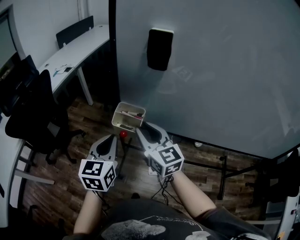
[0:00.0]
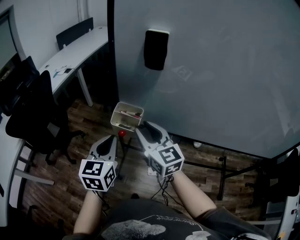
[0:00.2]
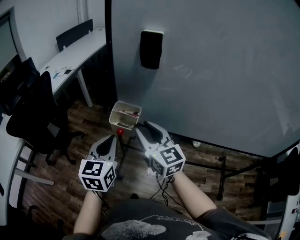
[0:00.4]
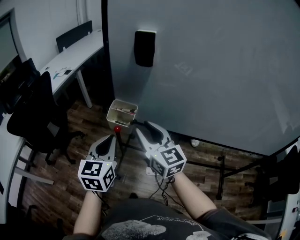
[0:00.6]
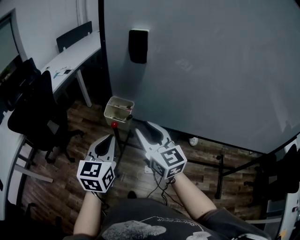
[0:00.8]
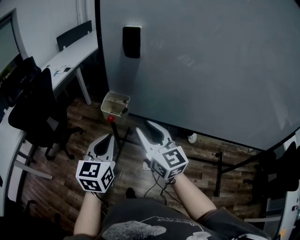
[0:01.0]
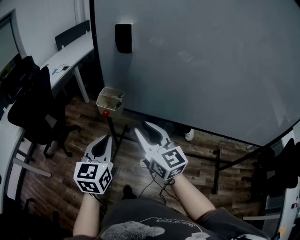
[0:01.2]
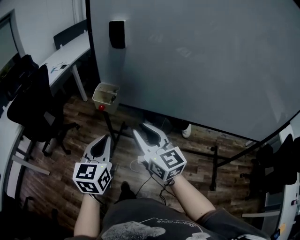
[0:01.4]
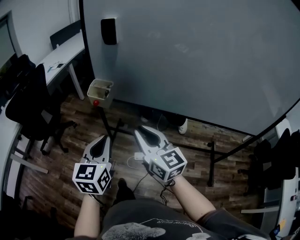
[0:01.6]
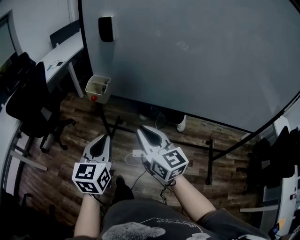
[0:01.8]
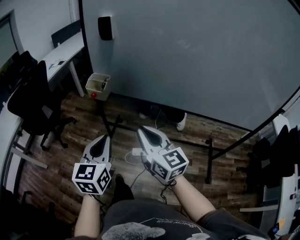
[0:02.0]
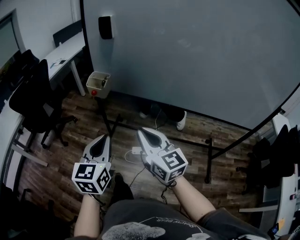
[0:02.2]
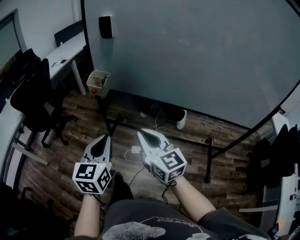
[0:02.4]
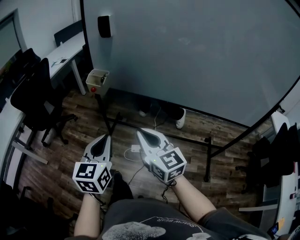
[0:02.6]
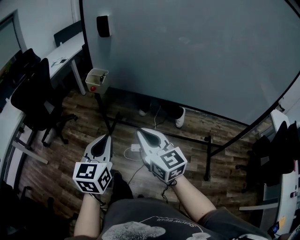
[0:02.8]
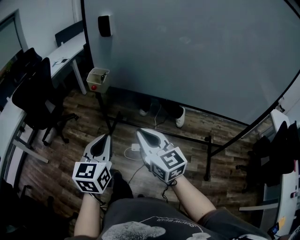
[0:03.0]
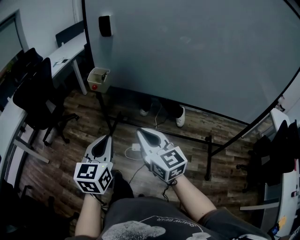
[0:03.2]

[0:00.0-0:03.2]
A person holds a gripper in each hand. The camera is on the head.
0.0 to 1.6 s: Both grippers move backward and to the right, approximately 25 cm.
1.6 to 3.2 s: The two grippers go approximately 15 cm backward.

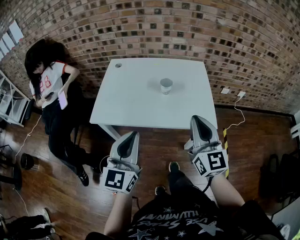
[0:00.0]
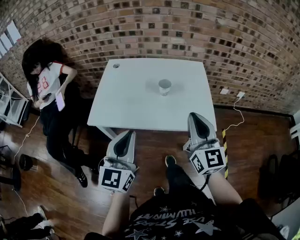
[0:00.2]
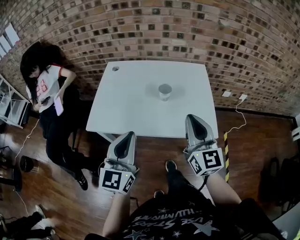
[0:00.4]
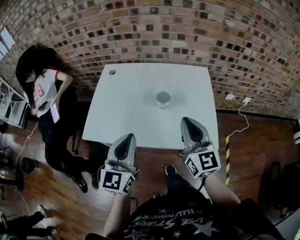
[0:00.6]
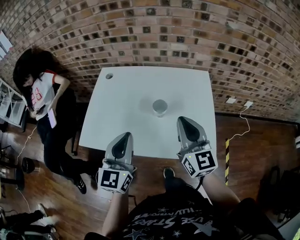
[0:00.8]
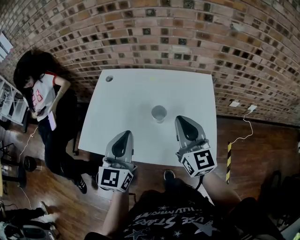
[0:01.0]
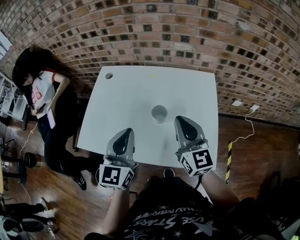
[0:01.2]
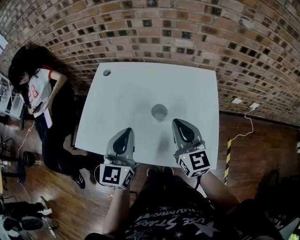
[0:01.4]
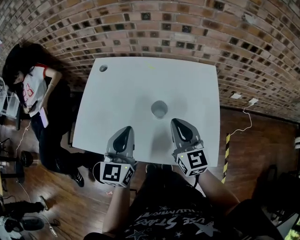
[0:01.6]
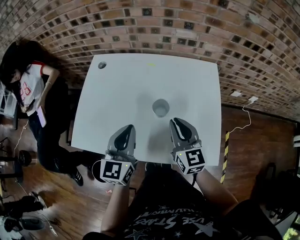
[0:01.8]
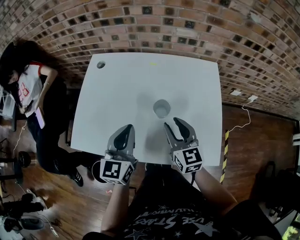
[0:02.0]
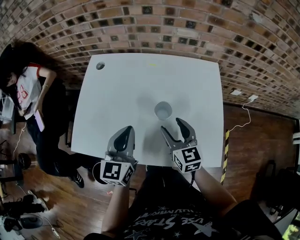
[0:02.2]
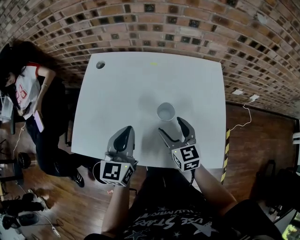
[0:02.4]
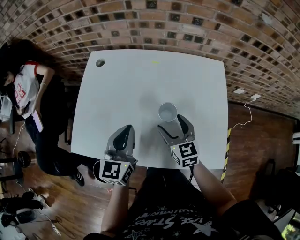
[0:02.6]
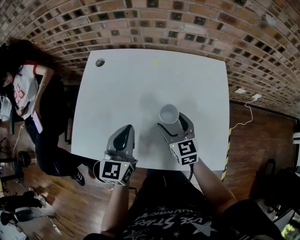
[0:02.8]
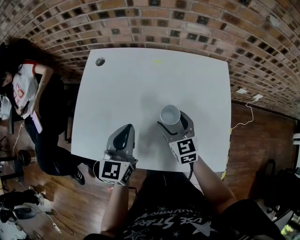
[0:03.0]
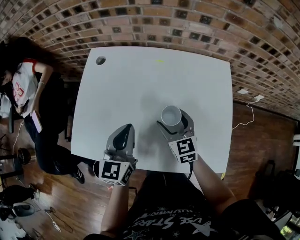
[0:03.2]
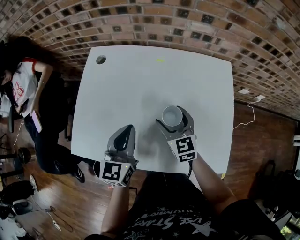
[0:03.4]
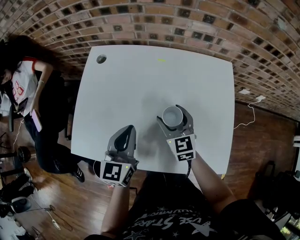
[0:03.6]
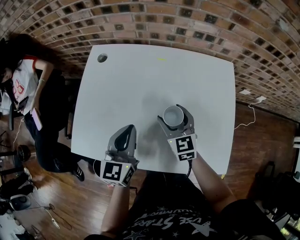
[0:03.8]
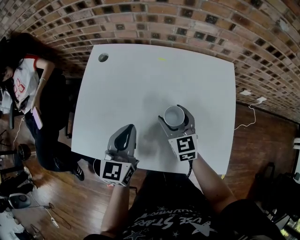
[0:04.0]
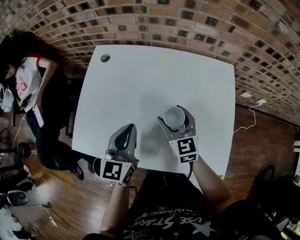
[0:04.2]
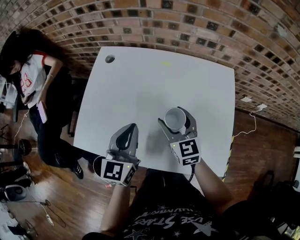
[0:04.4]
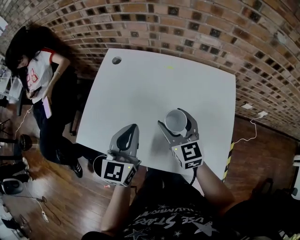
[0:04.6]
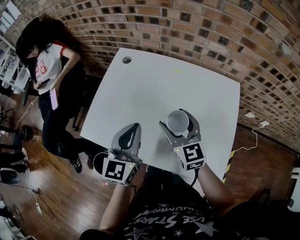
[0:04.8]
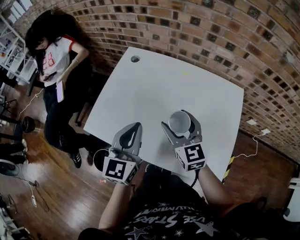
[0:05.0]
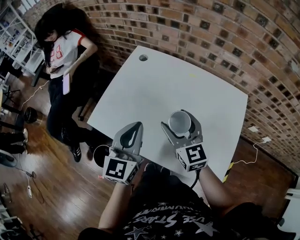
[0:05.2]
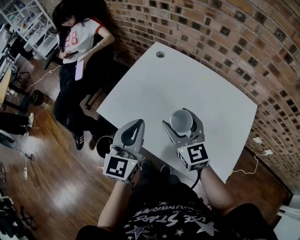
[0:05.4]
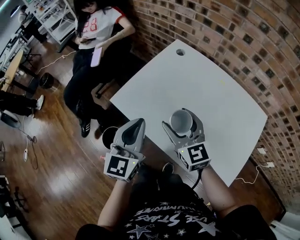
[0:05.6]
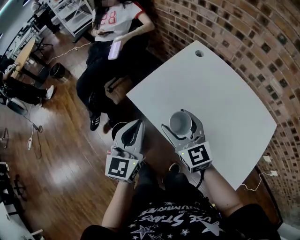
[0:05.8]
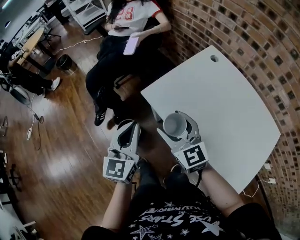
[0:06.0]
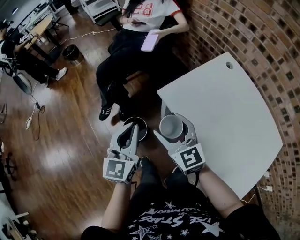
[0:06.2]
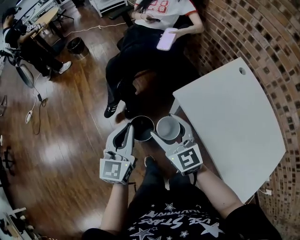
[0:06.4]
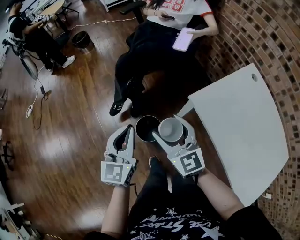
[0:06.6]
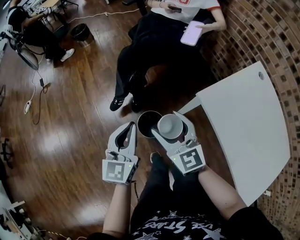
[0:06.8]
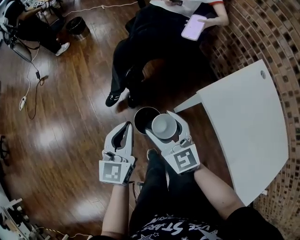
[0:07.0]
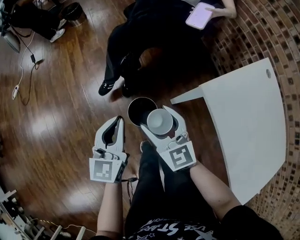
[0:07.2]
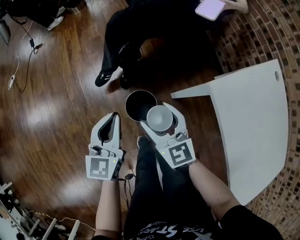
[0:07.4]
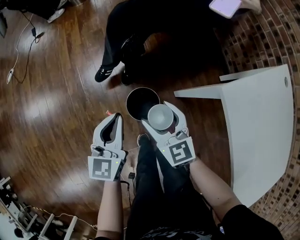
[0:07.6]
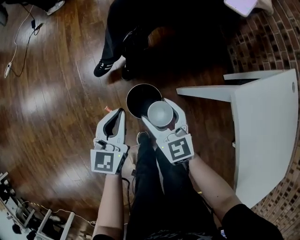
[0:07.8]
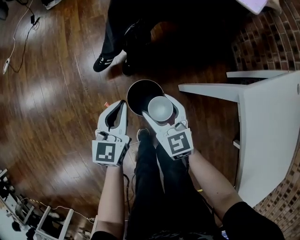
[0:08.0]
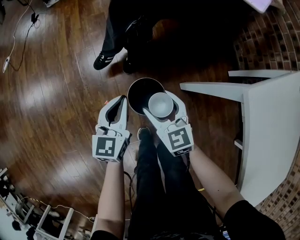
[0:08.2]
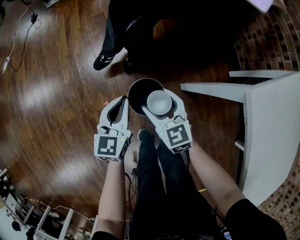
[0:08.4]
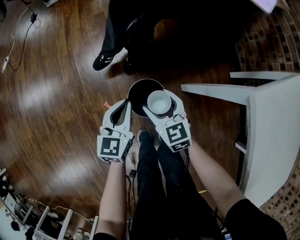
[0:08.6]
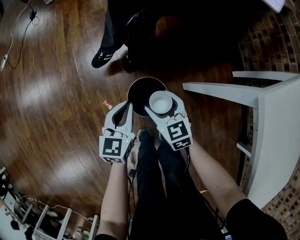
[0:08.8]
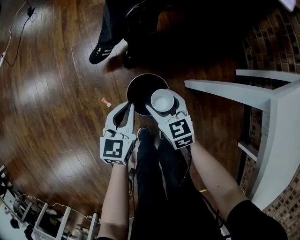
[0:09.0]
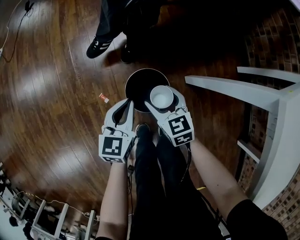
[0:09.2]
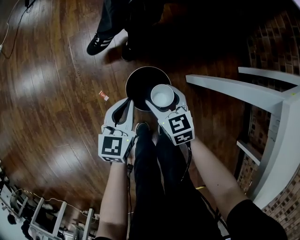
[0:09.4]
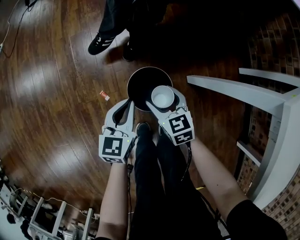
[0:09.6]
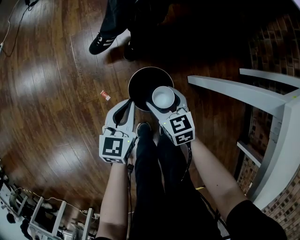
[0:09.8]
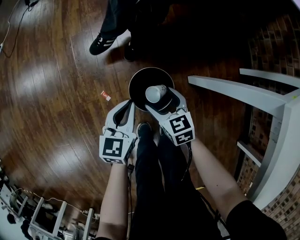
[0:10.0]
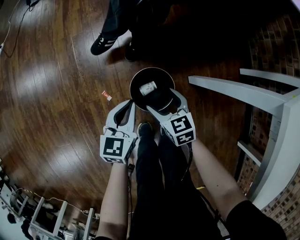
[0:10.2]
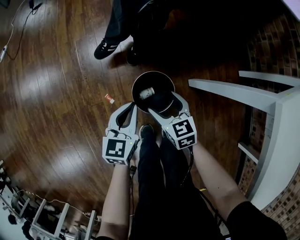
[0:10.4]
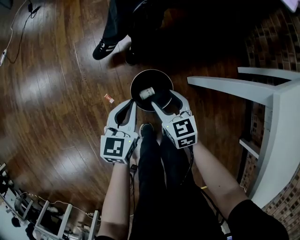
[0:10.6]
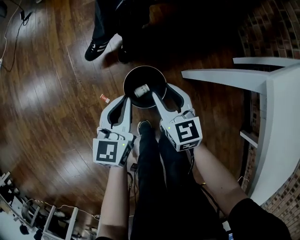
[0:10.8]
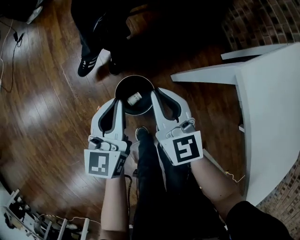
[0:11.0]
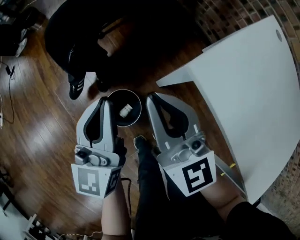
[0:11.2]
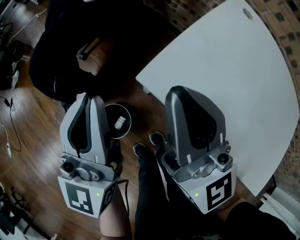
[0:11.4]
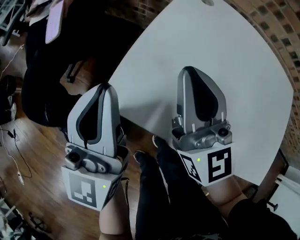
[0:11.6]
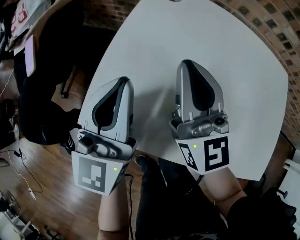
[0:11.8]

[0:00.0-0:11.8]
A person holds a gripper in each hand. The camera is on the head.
0.0 to 1.4 s: The right gripper is displaced forward and downward by approximately 25 cm, while the left gripper is displaced forward by some 25 cm.
1.4 to 3.0 s: The right gripper moves downward and forward, roughly 15 cm, and opens its fingers, while the left gripper heads downward and forward, covering roughly 10 cm.
3.0 to 4.4 s: The right gripper shifts approximately 5 cm upward.
4.4 to 6.0 s: The left gripper shifts by some 30 cm, and rotates approximately 40 degrees. The right gripper shifts by approximately 35 cm, and rotates some 50 degrees.
6.0 to 7.4 s: The left gripper goes approximately 30 cm to the left and downward, and changes its angle by approximately 20 degrees. The right gripper moves to the left, downward and forward, roughly 30 cm.
7.4 to 8.8 s: Both grippers move downward, approximately 25 cm.
8.8 to 10.4 s: The right gripper heads downward, covering about 5 cm.
10.4 to 11.8 s: Both grippers are carried roughly 50 cm. The right gripper points its fingers approximately 50 degrees further upward, and closes its fingers; the left gripper tips its fingers upward by roughly 30 degrees.

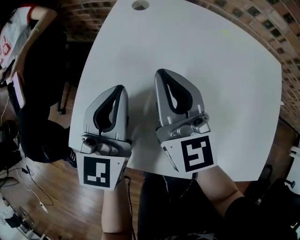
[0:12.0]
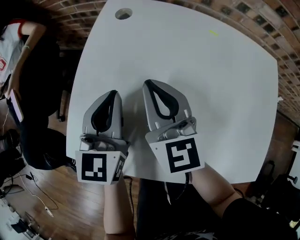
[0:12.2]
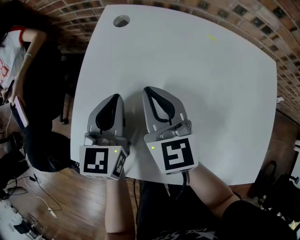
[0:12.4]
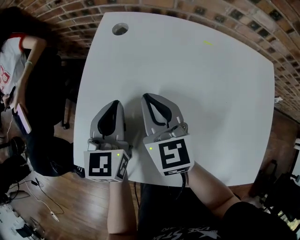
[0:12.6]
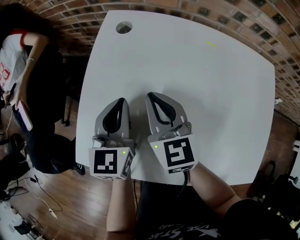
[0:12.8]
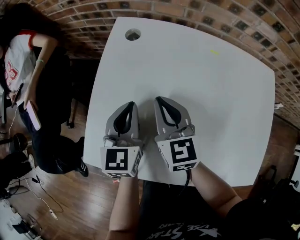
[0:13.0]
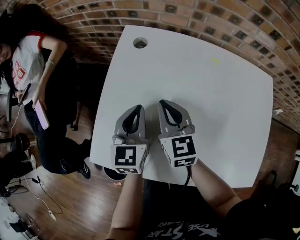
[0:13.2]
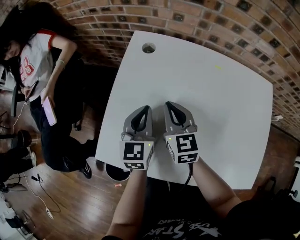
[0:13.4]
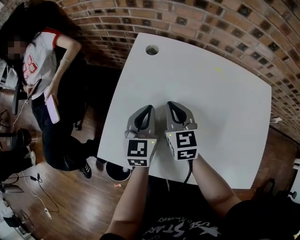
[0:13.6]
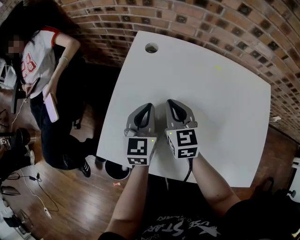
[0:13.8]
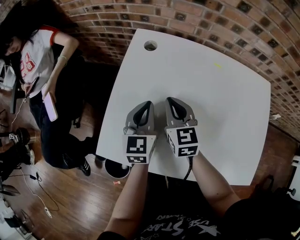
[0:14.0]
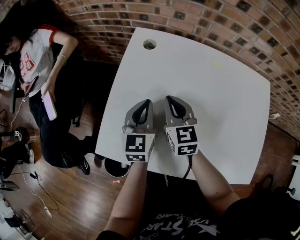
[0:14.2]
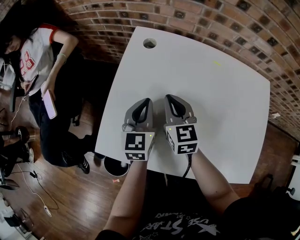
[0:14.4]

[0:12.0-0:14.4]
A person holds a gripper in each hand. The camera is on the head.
12.0 to 13.2 s: The two grippers go roughly 5 cm downward.
13.2 to 14.4 s: The two grippers keep their place.

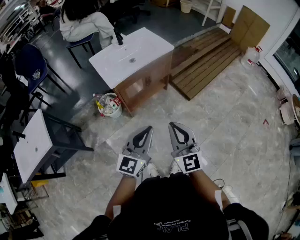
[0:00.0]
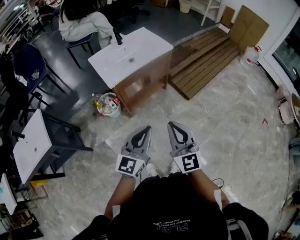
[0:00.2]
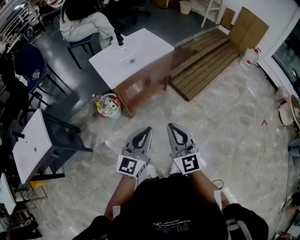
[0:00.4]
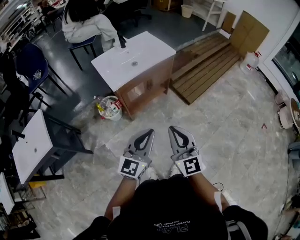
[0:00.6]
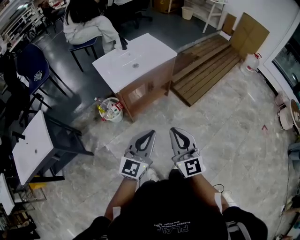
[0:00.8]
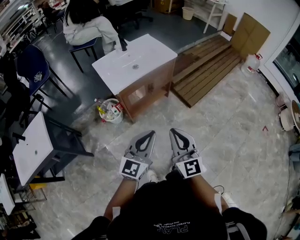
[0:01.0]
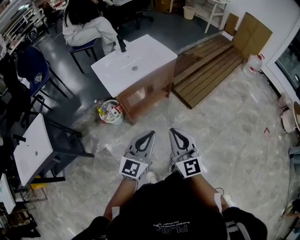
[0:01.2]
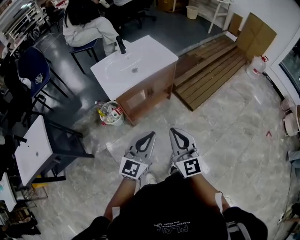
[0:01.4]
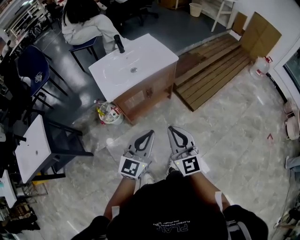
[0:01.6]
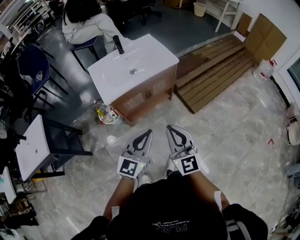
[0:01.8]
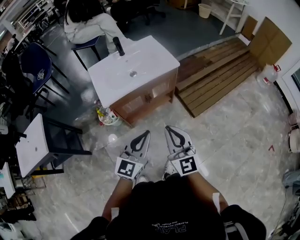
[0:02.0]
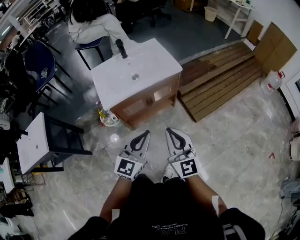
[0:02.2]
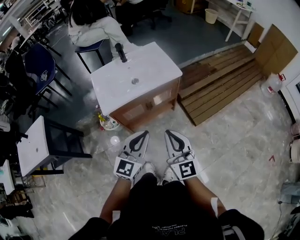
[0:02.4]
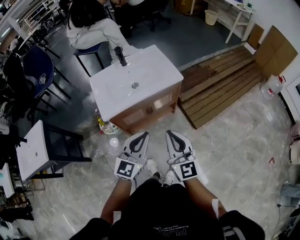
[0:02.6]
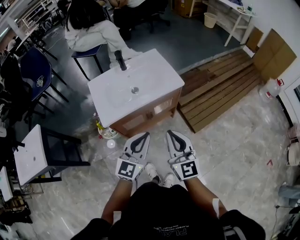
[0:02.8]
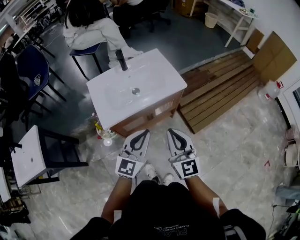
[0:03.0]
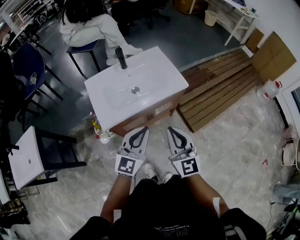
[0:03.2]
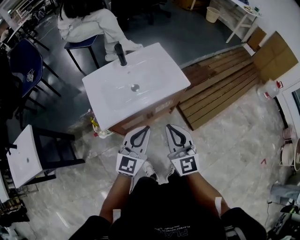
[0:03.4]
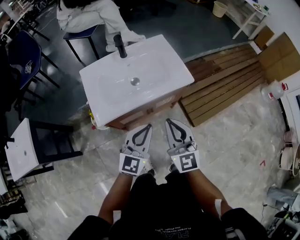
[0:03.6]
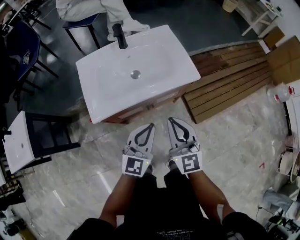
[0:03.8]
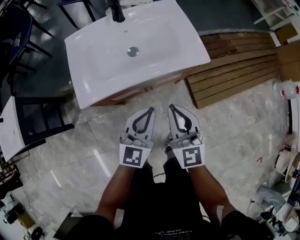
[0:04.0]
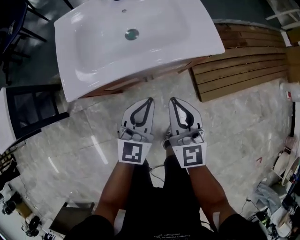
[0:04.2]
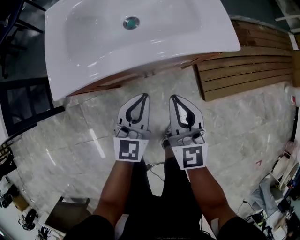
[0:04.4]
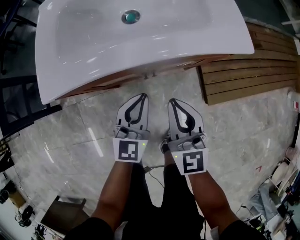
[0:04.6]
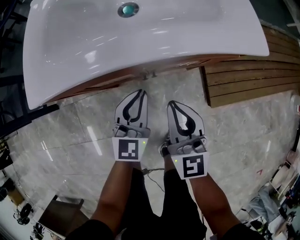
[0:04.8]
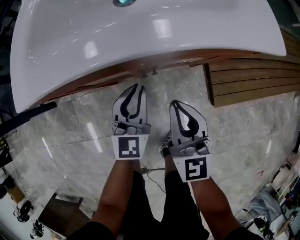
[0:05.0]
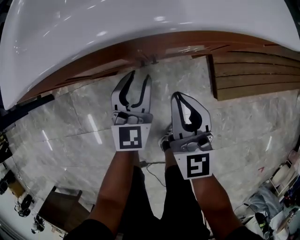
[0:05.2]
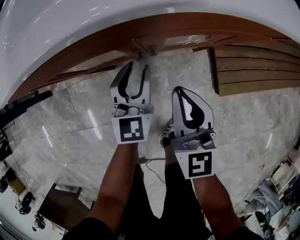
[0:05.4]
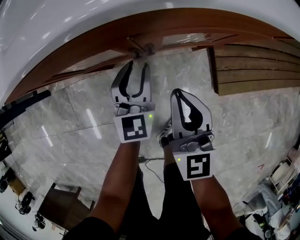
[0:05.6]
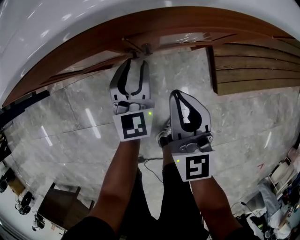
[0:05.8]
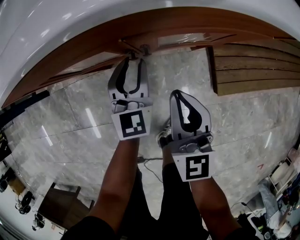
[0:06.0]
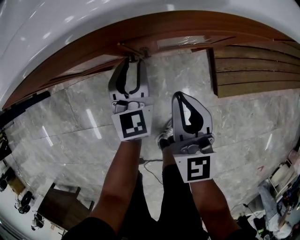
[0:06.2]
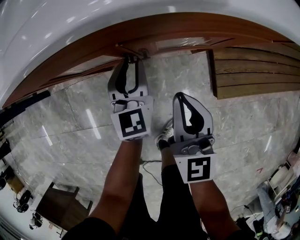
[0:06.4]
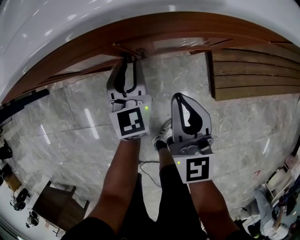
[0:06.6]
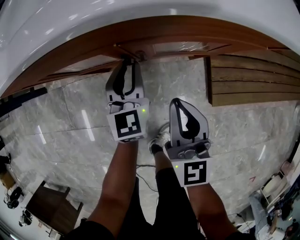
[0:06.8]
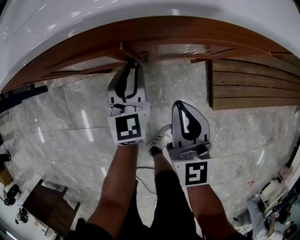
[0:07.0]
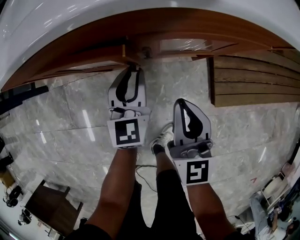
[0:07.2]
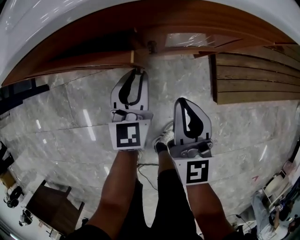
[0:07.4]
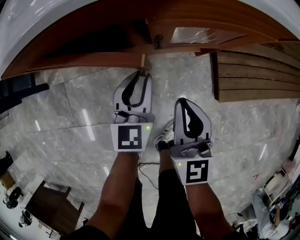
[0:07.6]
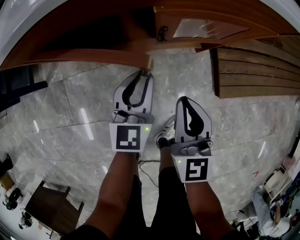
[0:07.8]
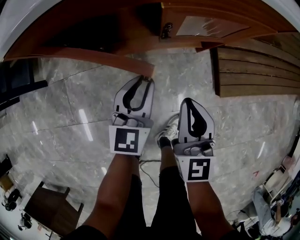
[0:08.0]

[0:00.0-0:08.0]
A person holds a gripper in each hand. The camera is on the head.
0.0 to 1.6 s: Both grippers move forward, about 10 cm.
1.6 to 3.2 s: Both grippers travel together forward, some 25 cm.
3.2 to 4.8 s: The grippers both shift downward by roughly 35 cm. The left gripper rotates roughly 30 degrees.
4.8 to 6.4 s: The right gripper goes about 10 cm downward, while the left gripper shifts approximately 10 cm downward and forward.
6.4 to 8.0 s: The left gripper moves backward, roughly 10 cm; the right gripper goes roughly 10 cm backward.
